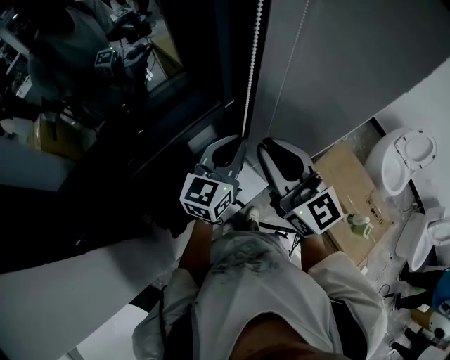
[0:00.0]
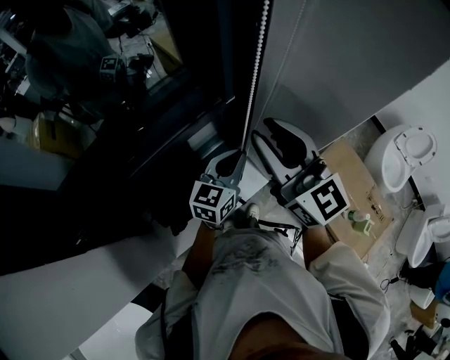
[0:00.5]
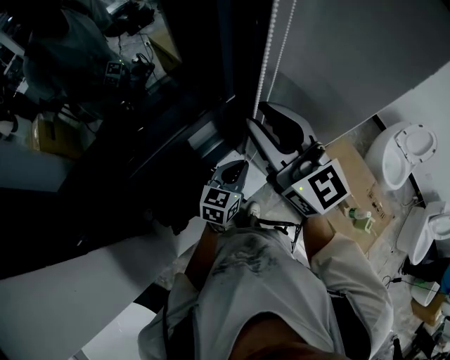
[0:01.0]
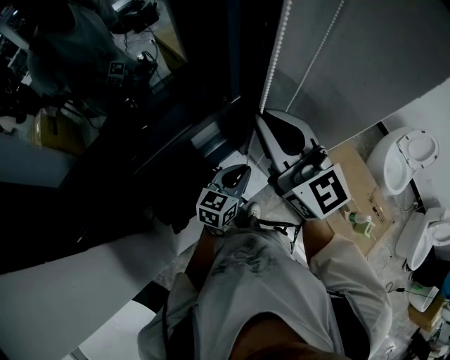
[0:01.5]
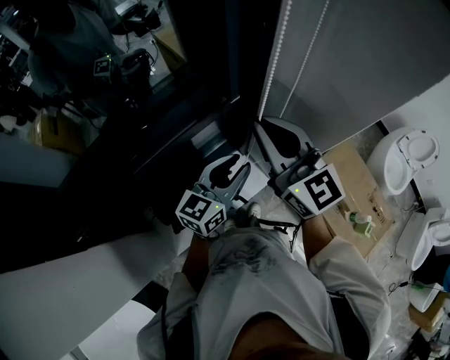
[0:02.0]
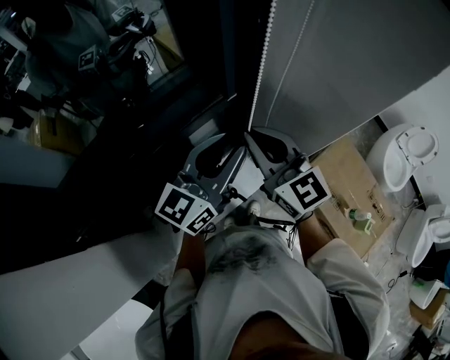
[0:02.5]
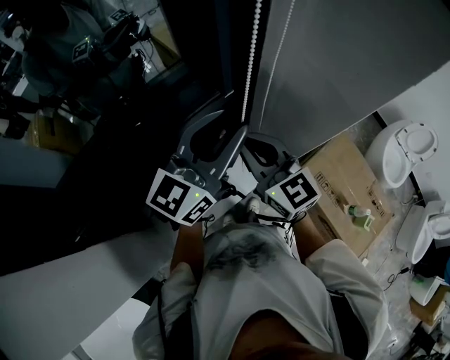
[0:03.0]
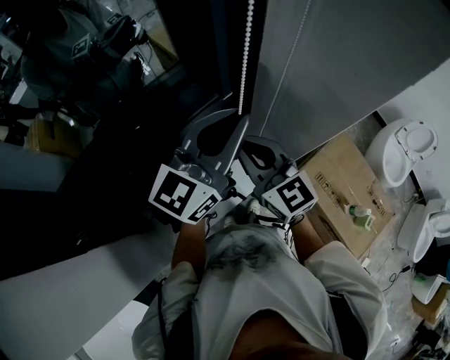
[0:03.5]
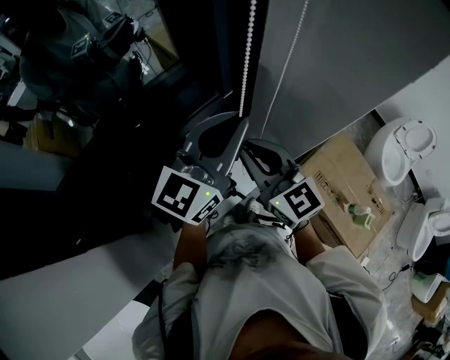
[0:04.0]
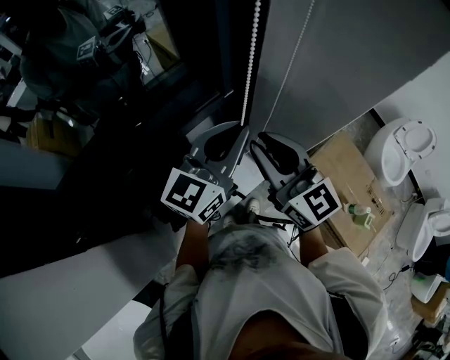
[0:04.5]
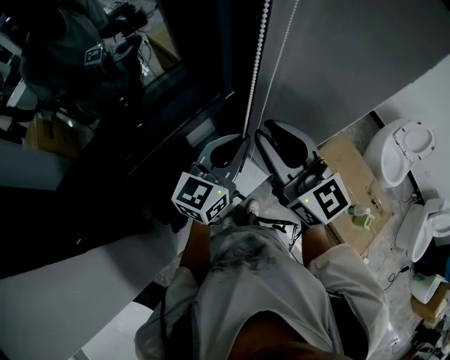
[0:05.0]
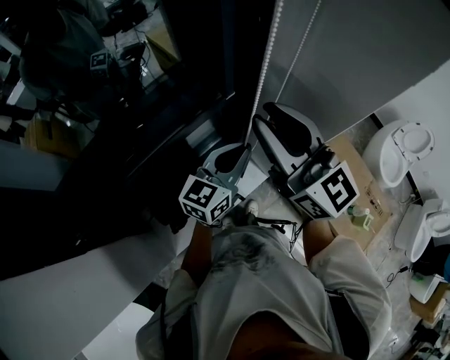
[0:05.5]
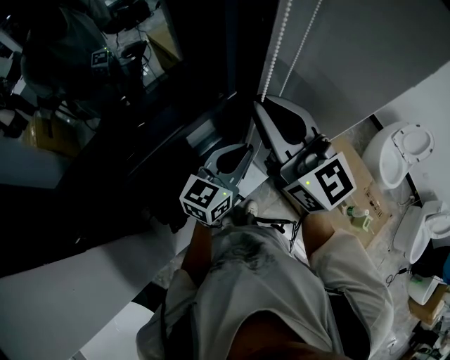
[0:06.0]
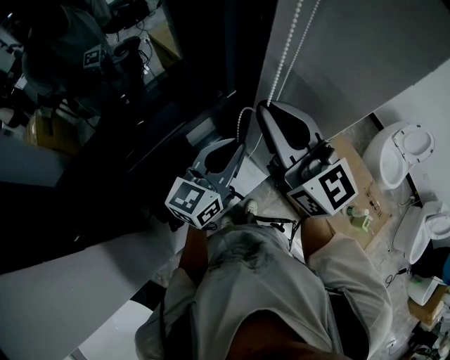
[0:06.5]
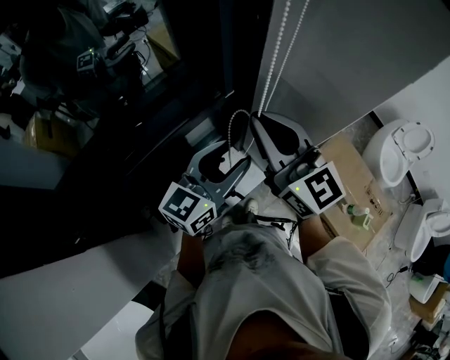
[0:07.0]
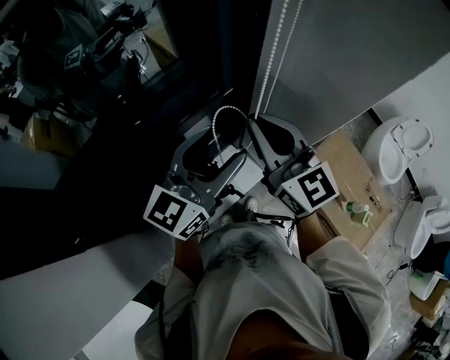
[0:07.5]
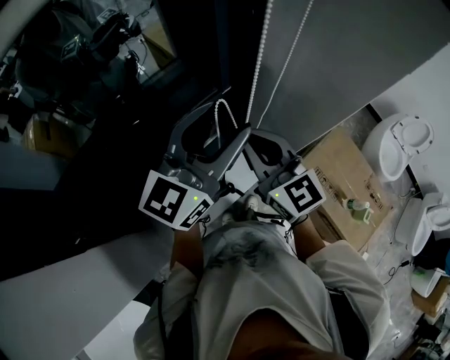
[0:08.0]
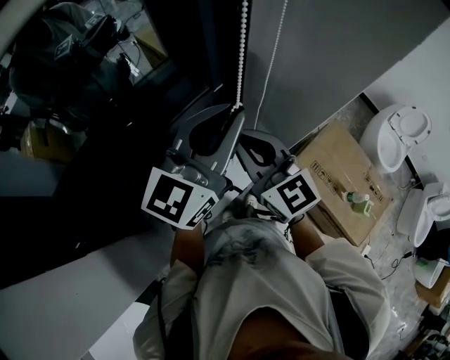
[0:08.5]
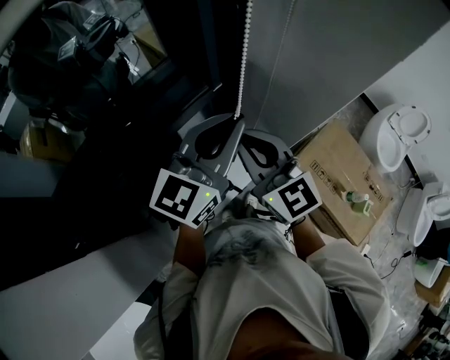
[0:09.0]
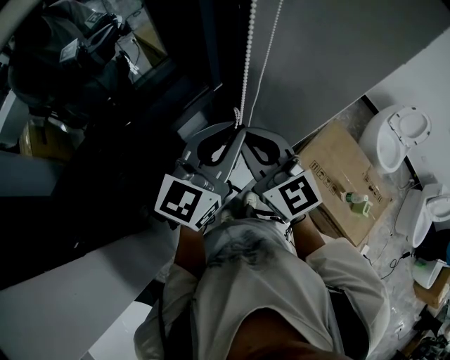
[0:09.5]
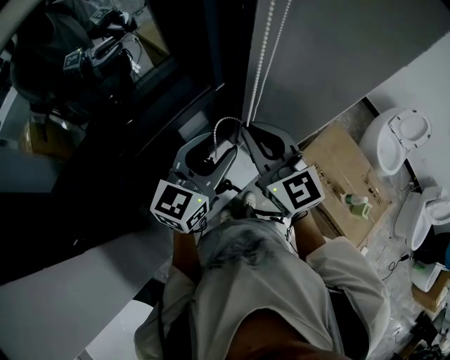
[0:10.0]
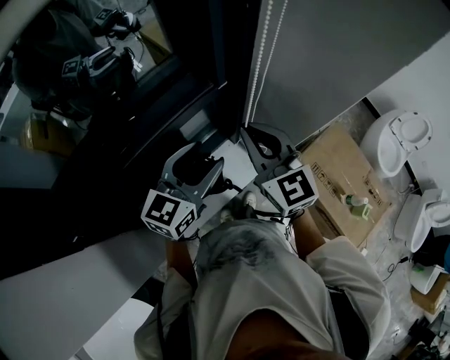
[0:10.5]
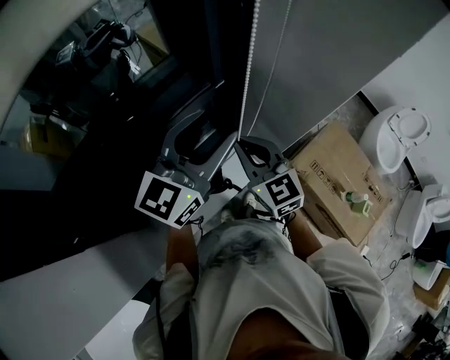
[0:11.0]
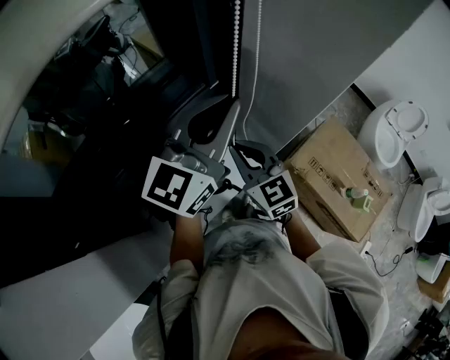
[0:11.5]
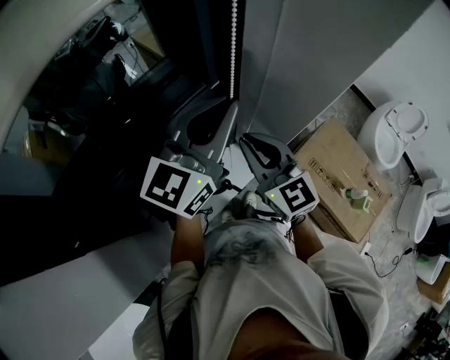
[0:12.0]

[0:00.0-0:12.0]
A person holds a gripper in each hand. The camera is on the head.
0:00.0 to 0:02.0: The left gripper goes downward and returns, roughly 15 cm each way, and opens.
0:02.0 to 0:04.0: The right gripper travels downward by some 5 cm, while the left gripper travels upward by about 15 cm, swivels roughly 20 degrees, and closes up.
0:04.0 to 0:06.0: The left gripper goes some 15 cm downward, while the right gripper shifts some 15 cm upward.
0:06.0 to 0:08.0: The left gripper moves upward, about 15 cm, and opens its fingers, while the right gripper goes some 10 cm downward.
0:08.0 to 0:10.0: The left gripper shifts some 10 cm downward, and closes, then opens again.
0:10.0 to 0:12.0: The right gripper moves roughly 10 cm downward and comes back. Meanwhile the left gripper is displaced upward by some 10 cm, and closes its fingers.

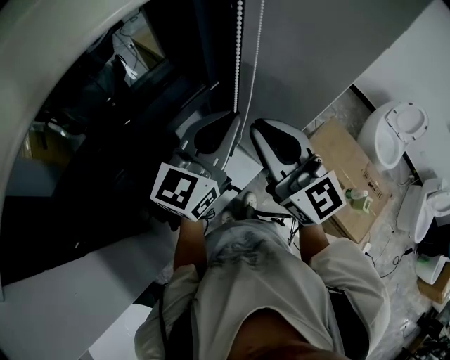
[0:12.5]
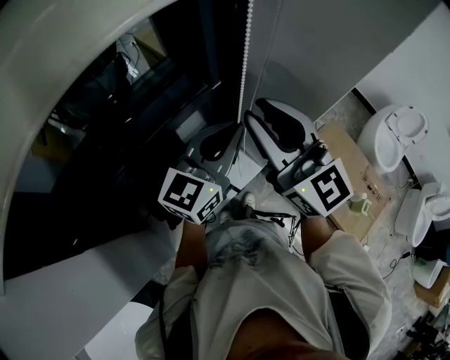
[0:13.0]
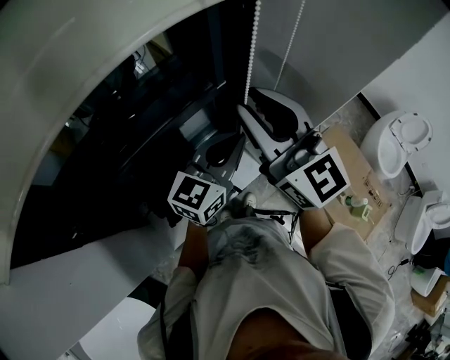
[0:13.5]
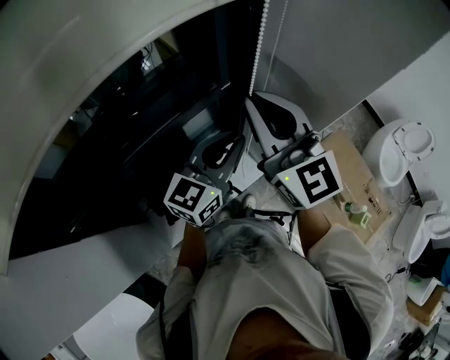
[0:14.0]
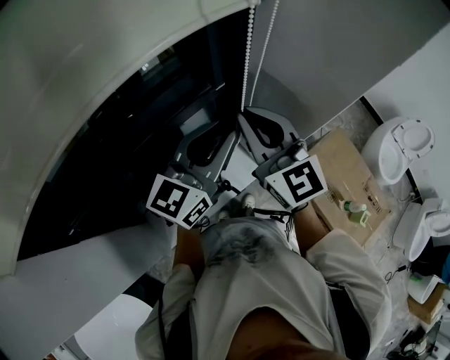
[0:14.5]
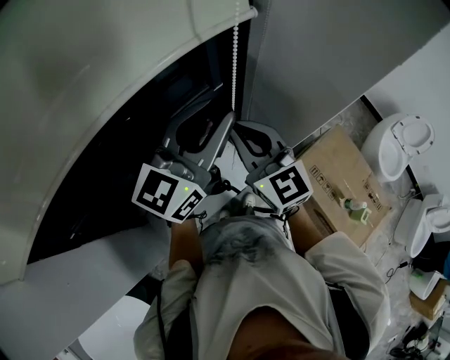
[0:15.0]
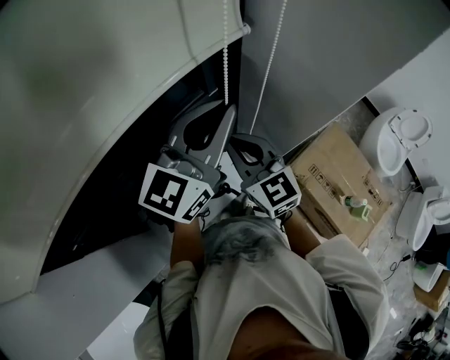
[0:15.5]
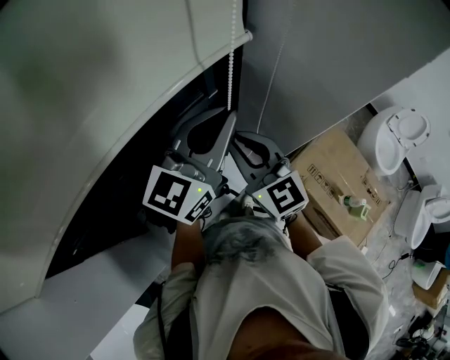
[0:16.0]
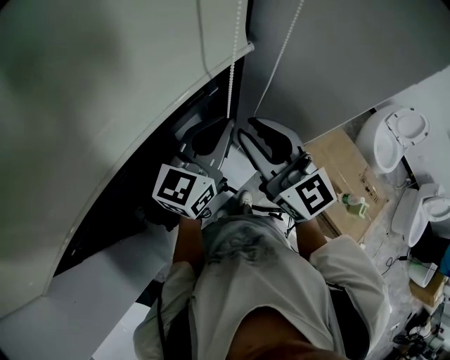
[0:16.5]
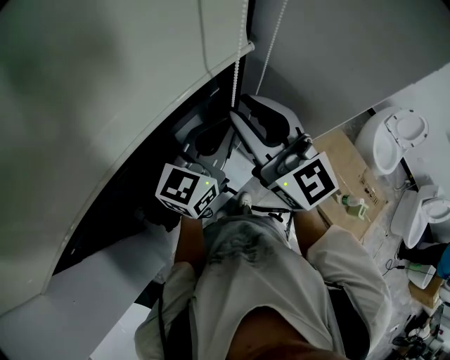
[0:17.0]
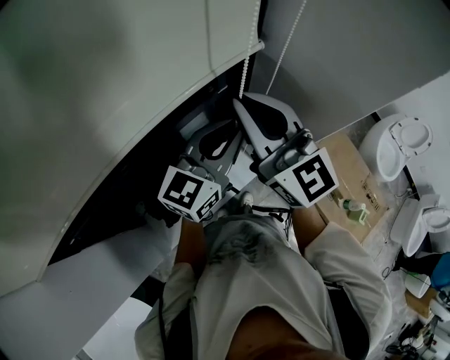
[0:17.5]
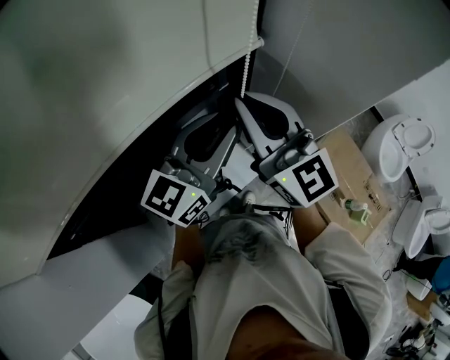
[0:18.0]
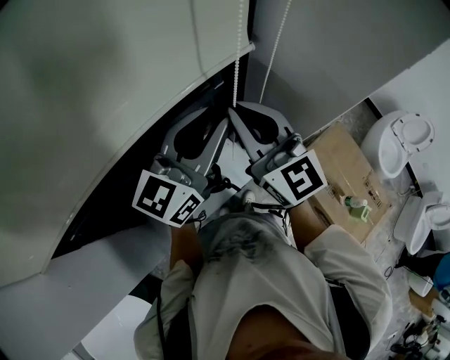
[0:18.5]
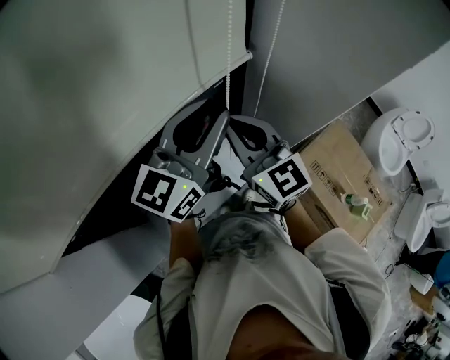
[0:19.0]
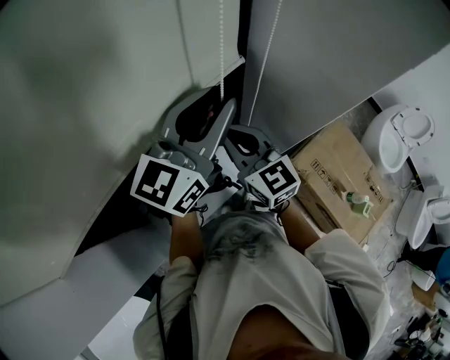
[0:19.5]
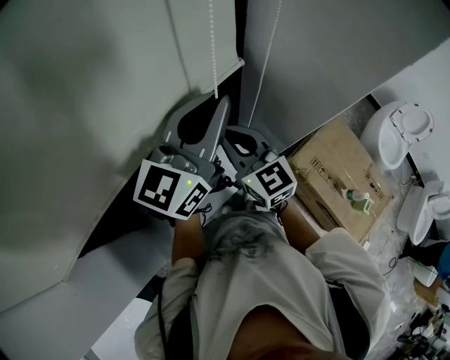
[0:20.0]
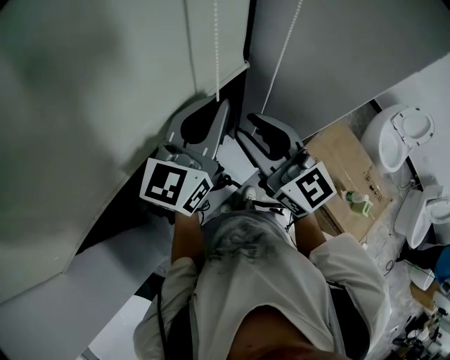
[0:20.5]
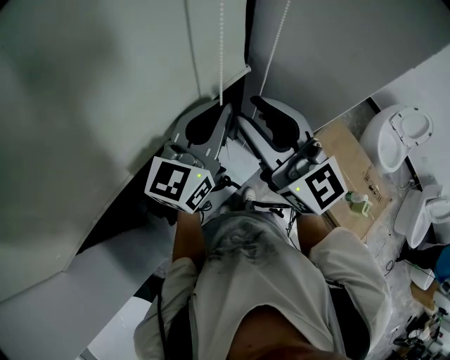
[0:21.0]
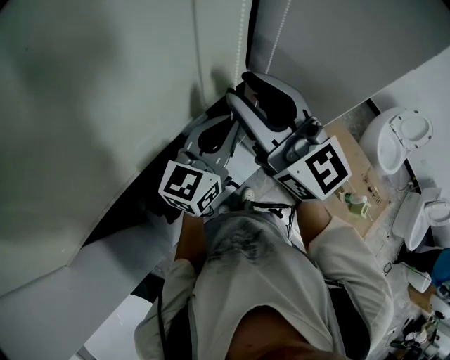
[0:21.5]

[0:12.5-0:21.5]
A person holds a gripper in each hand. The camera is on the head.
0:12.5 to 0:14.5: The right gripper moves some 5 cm, and opens and closes again. Meanwhile the left gripper reaches approximately 10 cm downward, then returns.
0:14.5 to 0:17.0: The left gripper is displaced forward by approximately 5 cm, and travels upward and back again, some 5 cm each way, while the right gripper travels downward and back again, some 10 cm each way.
0:17.0 to 0:19.5: The right gripper moves downward, approximately 15 cm, and closes its fingers. Meanwhile the left gripper travels upward by approximately 10 cm, and opens its fingers.
0:19.5 to 0:21.5: The left gripper shifts roughly 10 cm downward. Meanwhile the right gripper heads upward, covering roughly 15 cm, swivels approximately 20 degrees, and opens its fingers.

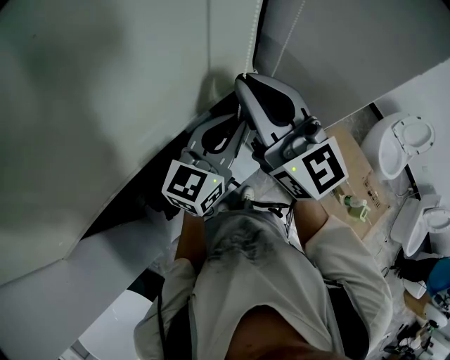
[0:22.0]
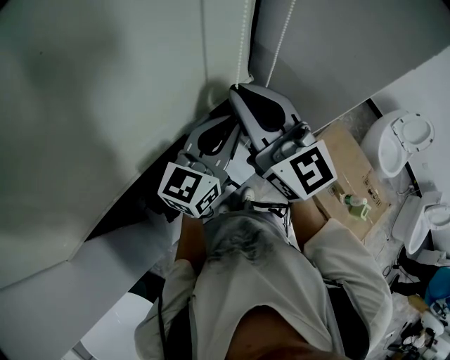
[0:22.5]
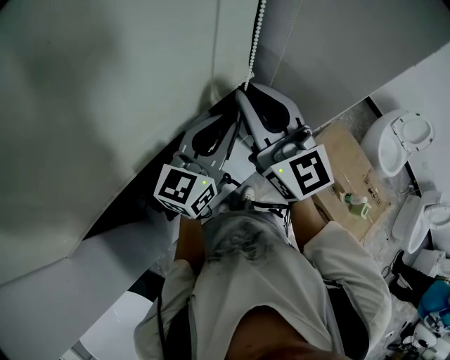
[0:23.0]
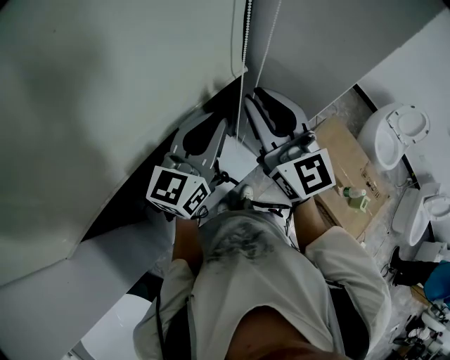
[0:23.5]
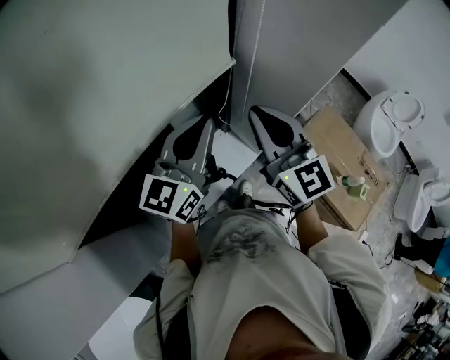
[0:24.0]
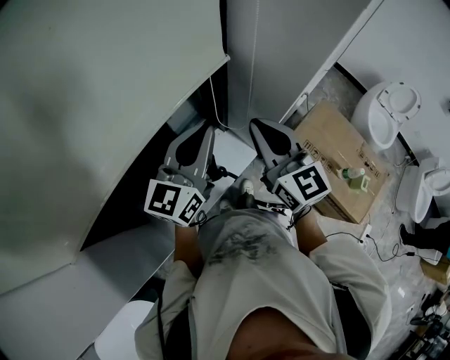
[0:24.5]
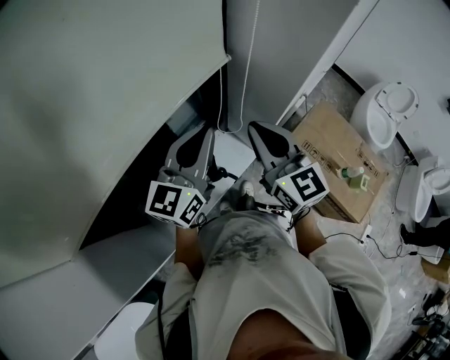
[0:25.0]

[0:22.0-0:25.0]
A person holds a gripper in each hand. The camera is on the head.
0:22.0 to 0:23.5: The right gripper is displaced downward by roughly 5 cm.
0:23.5 to 0:25.0: The right gripper shifts some 10 cm backward and downward; the left gripper travels backward by approximately 5 cm.

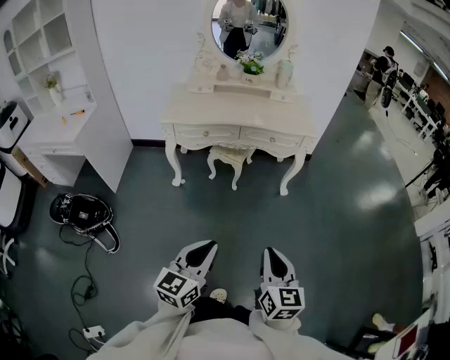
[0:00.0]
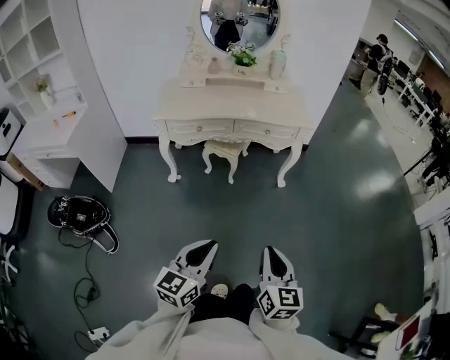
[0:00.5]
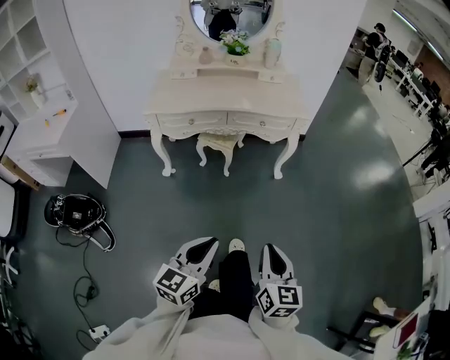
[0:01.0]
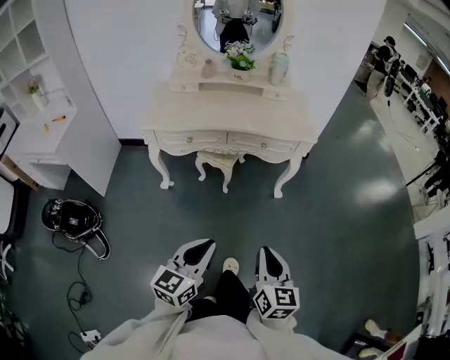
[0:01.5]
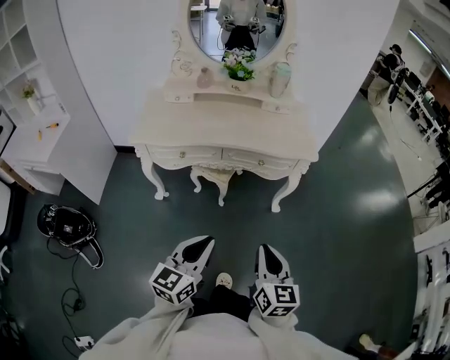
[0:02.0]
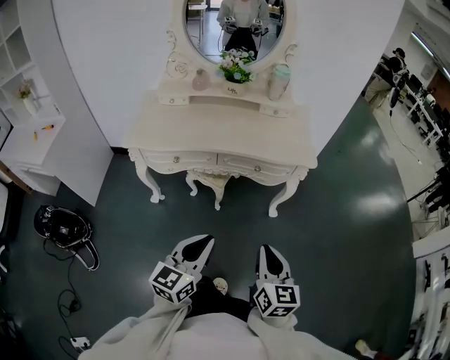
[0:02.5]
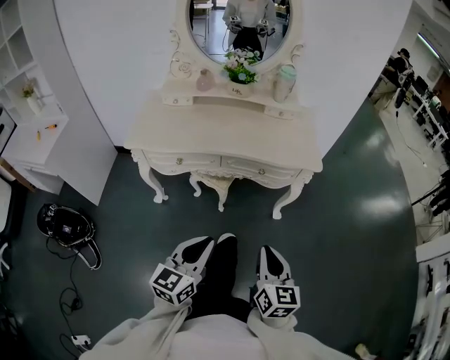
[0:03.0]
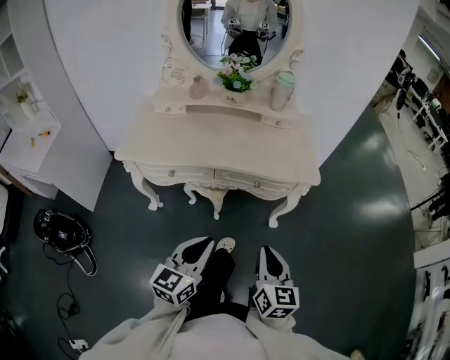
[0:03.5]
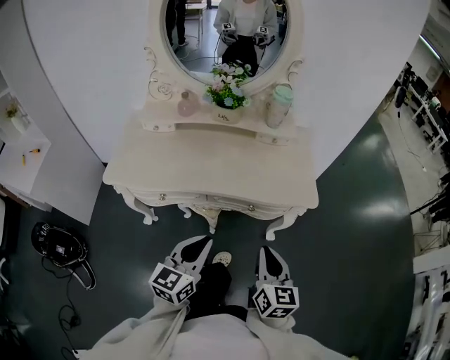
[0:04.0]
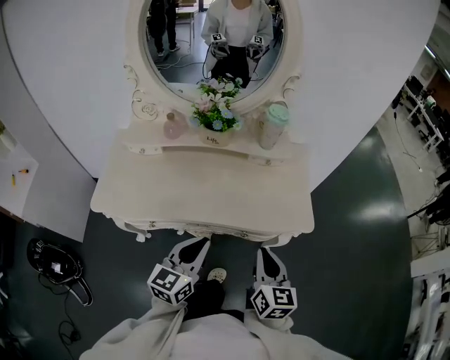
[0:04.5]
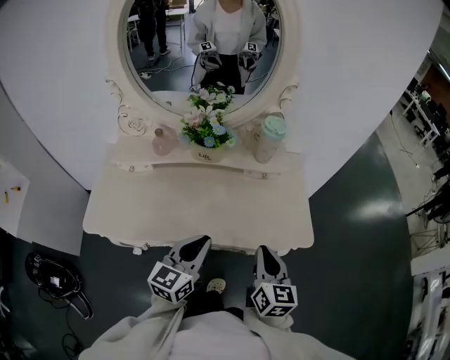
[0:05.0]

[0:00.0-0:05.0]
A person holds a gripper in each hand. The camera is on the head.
0:00.0 to 0:02.5: Both grippers move forward, some 30 cm.
0:02.5 to 0:05.0: Both grippers move forward, approximately 40 cm.
